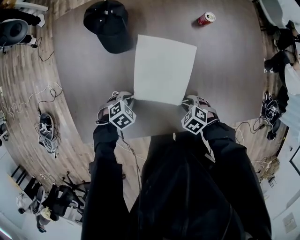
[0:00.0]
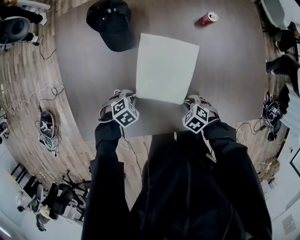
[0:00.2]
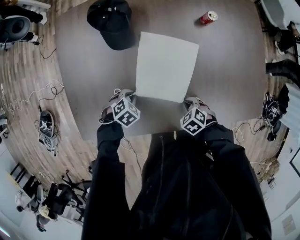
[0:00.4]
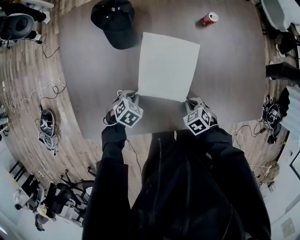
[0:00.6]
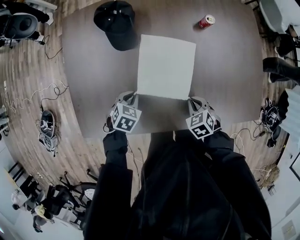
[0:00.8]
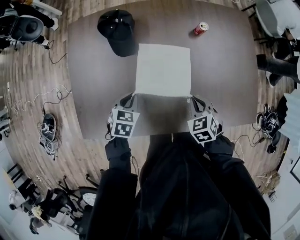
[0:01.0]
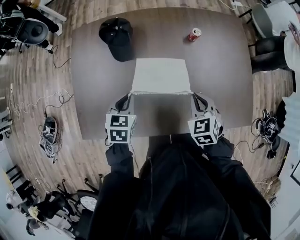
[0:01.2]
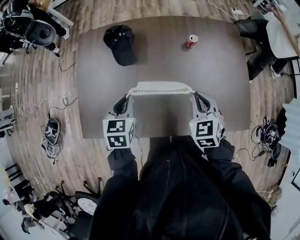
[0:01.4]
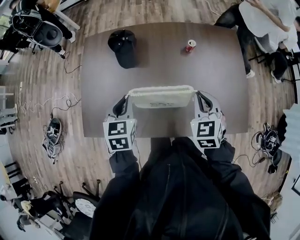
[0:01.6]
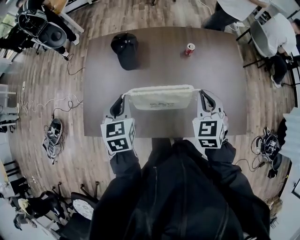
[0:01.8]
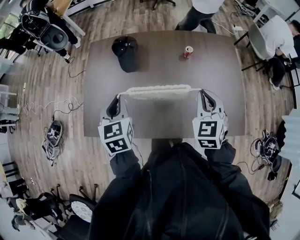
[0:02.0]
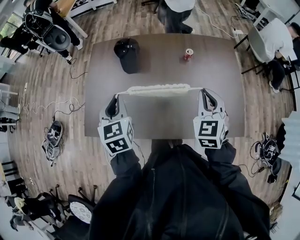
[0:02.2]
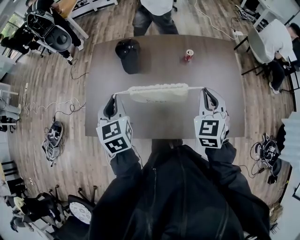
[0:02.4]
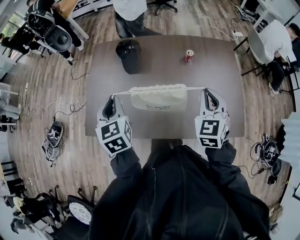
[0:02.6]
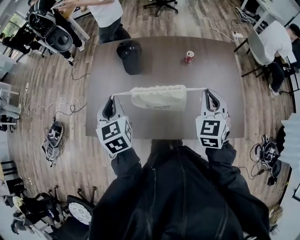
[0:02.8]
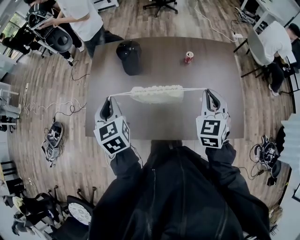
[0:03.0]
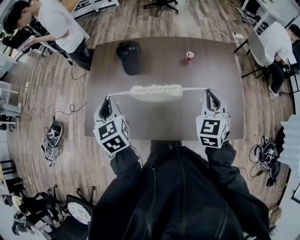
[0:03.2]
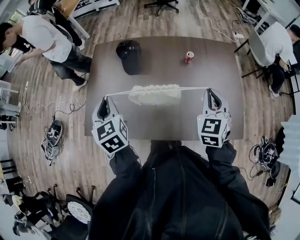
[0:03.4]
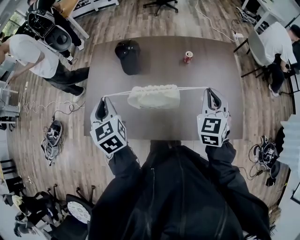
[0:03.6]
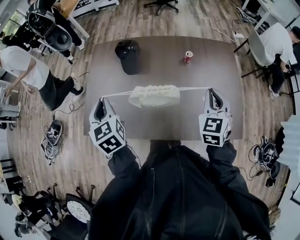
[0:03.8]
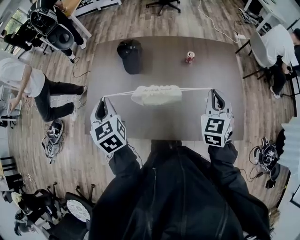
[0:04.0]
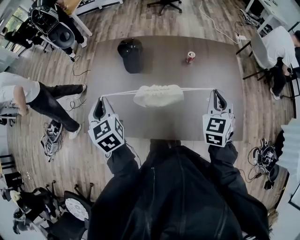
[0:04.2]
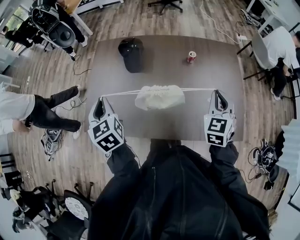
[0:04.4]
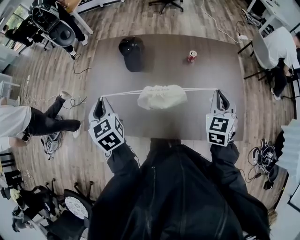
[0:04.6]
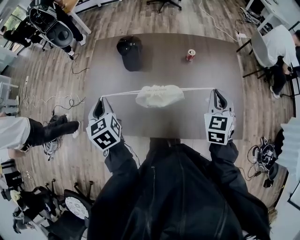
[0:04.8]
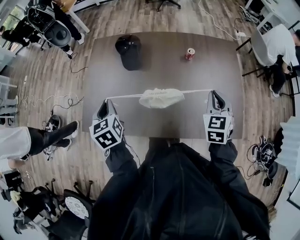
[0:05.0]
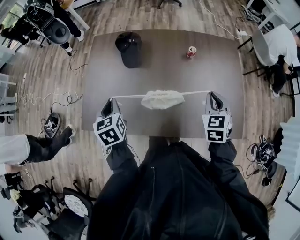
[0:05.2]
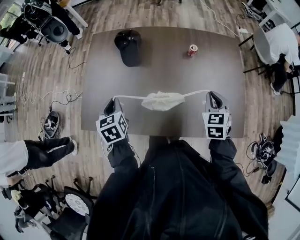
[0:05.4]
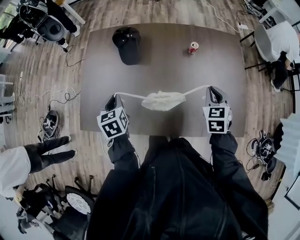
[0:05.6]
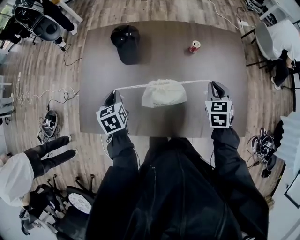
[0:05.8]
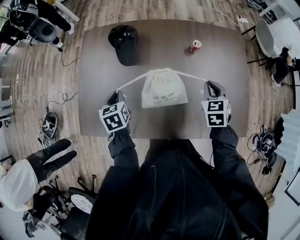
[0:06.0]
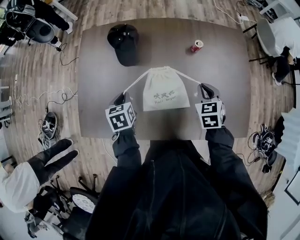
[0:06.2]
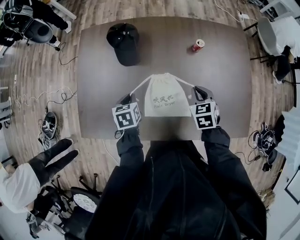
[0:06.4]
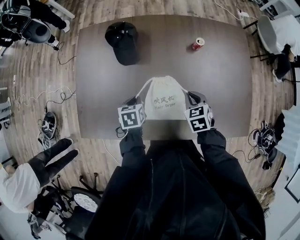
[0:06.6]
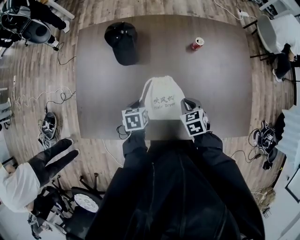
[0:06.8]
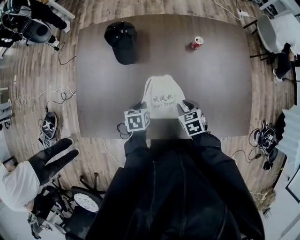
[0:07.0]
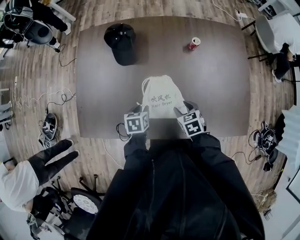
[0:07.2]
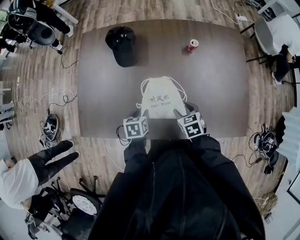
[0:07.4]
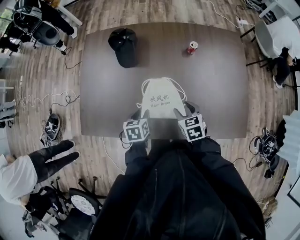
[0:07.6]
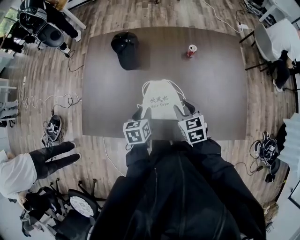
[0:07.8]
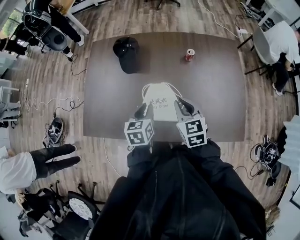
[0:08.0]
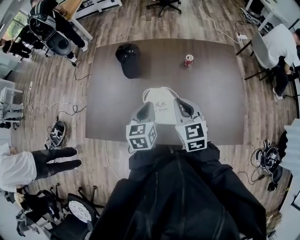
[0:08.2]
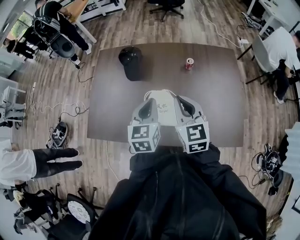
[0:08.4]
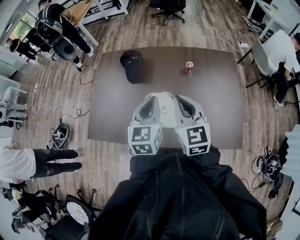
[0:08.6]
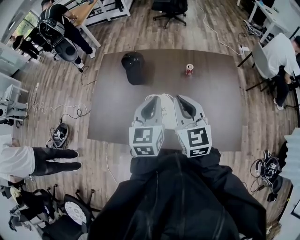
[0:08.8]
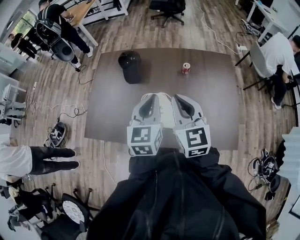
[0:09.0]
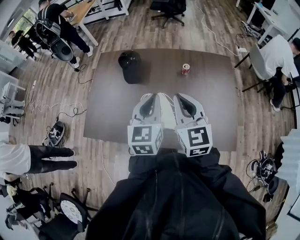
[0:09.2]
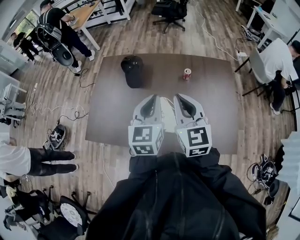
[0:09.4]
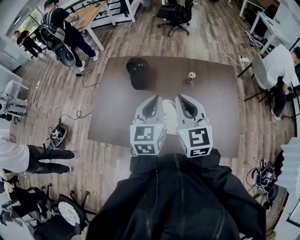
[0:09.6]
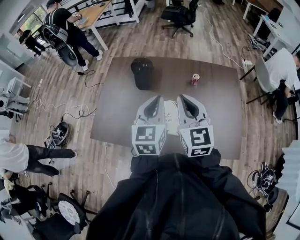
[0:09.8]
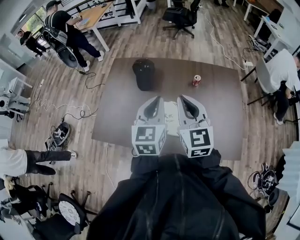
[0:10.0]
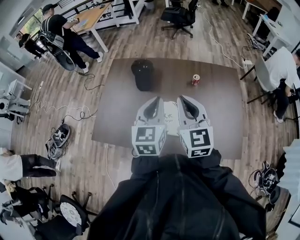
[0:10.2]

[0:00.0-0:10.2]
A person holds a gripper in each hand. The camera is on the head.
0.0 to 1.4 s: The grippers both shift upward by about 30 cm. The right gripper tips its fingers upward by approximately 40 degrees, and closes its fingers. Meanwhile the left gripper tilts its fingers some 30 degrees upward.
1.4 to 3.0 s: The right gripper shifts about 10 cm upward; the left gripper moves upward, backward and to the left, roughly 15 cm, and swivels about 30 degrees.
3.0 to 4.4 s: The right gripper moves roughly 5 cm.
4.4 to 5.8 s: The two grippers go approximately 15 cm downward and forward. The left gripper changes its angle by roughly 20 degrees.
5.8 to 7.2 s: The left gripper goes about 20 cm downward and to the right, changes its angle by about 30 degrees, and opens its fingers, while the right gripper moves downward, to the left and backward, roughly 20 cm, turns by about 30 degrees, and opens its fingers.
7.2 to 8.8 s: The two grippers go approximately 35 cm upward. The left gripper points its fingers approximately 50 degrees further upward, and closes its fingers, while the right gripper angles its fingers upward, by some 50 degrees, and closes up.
8.8 to 10.2 s: The left gripper ends up approximately 5 cm from where it was; the right gripper shifts by about 5 cm.

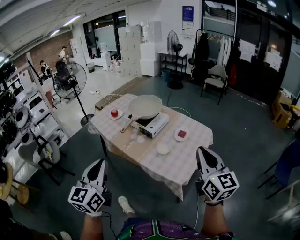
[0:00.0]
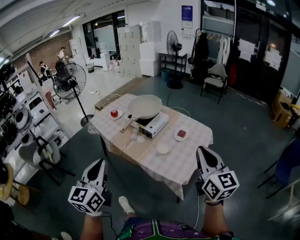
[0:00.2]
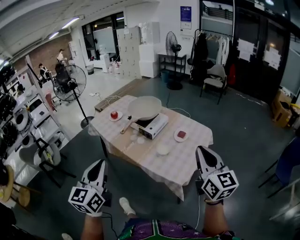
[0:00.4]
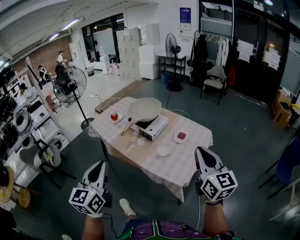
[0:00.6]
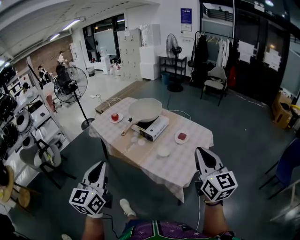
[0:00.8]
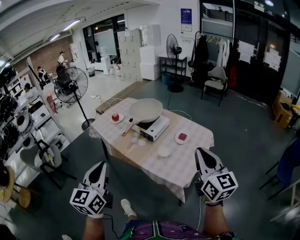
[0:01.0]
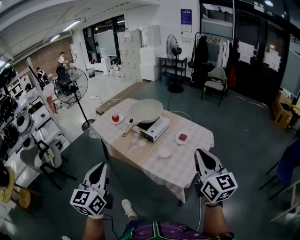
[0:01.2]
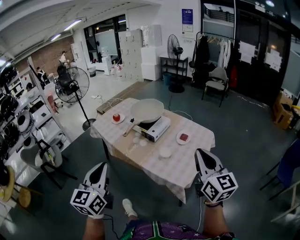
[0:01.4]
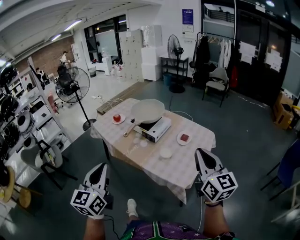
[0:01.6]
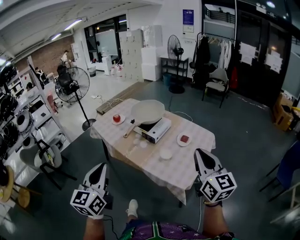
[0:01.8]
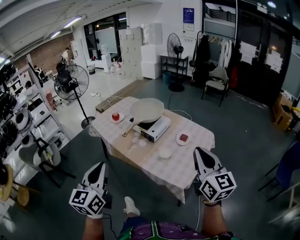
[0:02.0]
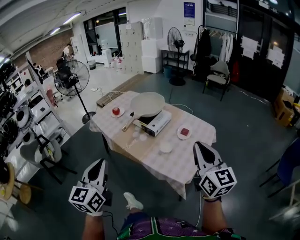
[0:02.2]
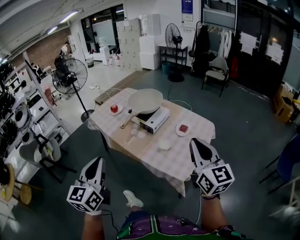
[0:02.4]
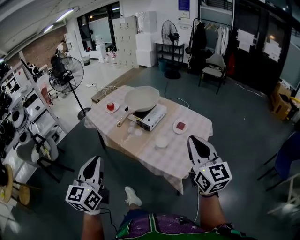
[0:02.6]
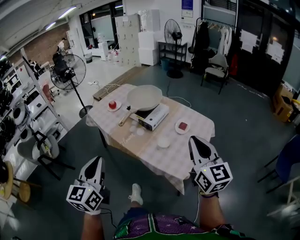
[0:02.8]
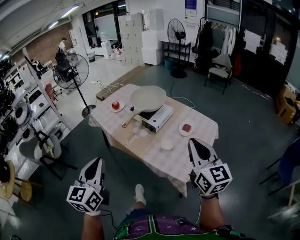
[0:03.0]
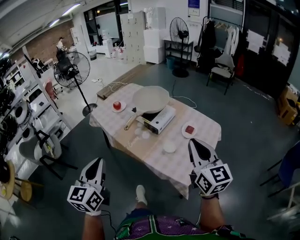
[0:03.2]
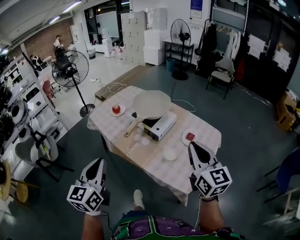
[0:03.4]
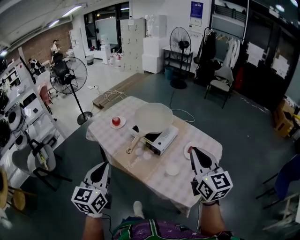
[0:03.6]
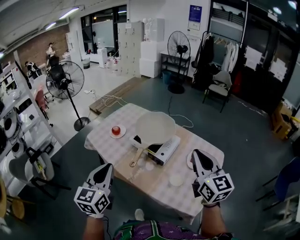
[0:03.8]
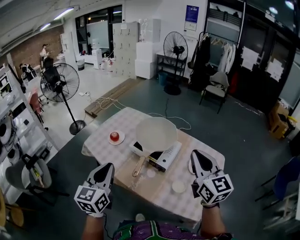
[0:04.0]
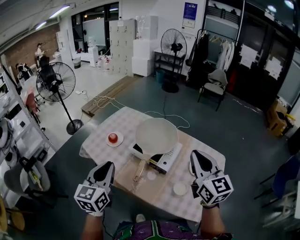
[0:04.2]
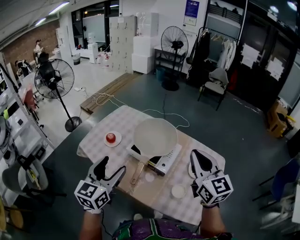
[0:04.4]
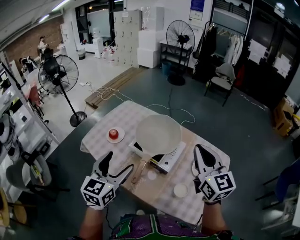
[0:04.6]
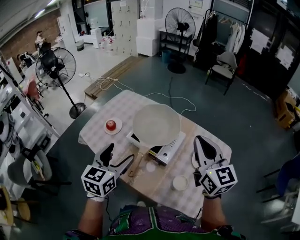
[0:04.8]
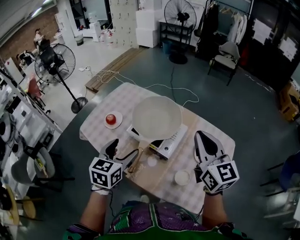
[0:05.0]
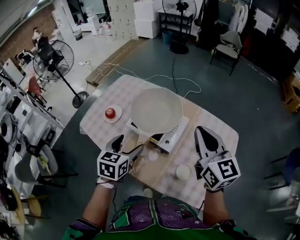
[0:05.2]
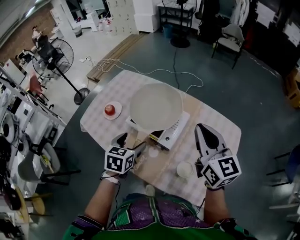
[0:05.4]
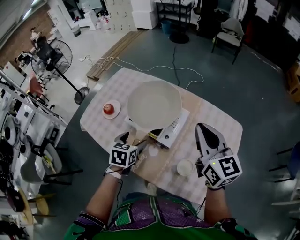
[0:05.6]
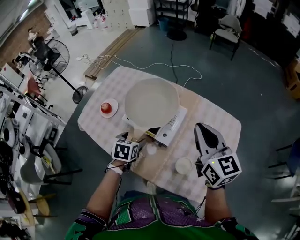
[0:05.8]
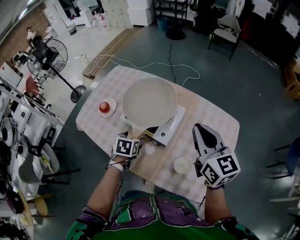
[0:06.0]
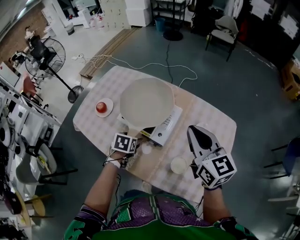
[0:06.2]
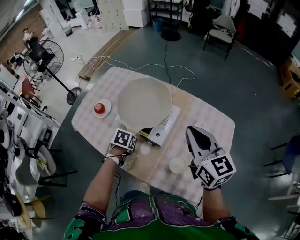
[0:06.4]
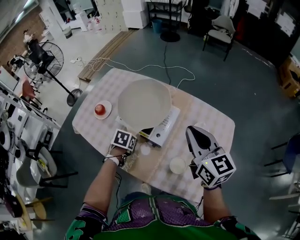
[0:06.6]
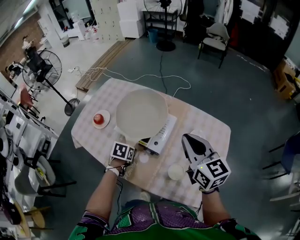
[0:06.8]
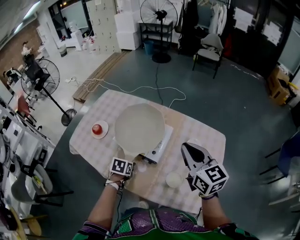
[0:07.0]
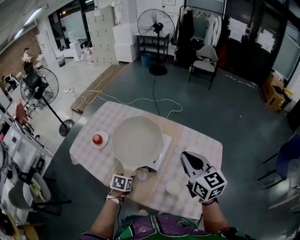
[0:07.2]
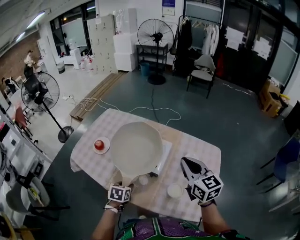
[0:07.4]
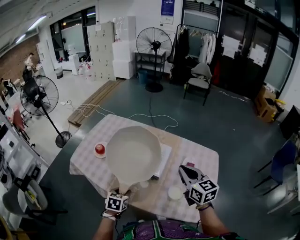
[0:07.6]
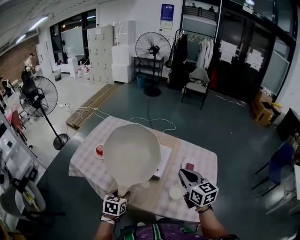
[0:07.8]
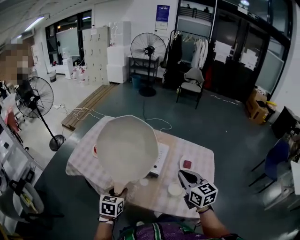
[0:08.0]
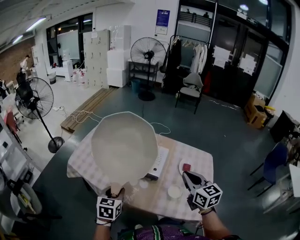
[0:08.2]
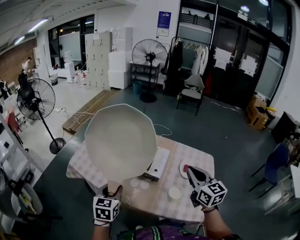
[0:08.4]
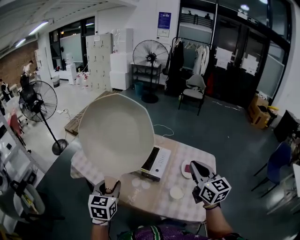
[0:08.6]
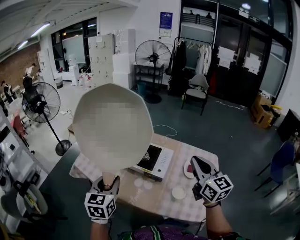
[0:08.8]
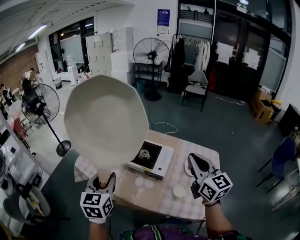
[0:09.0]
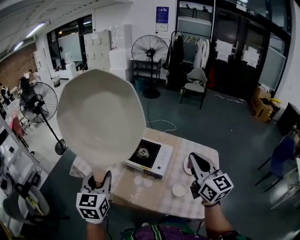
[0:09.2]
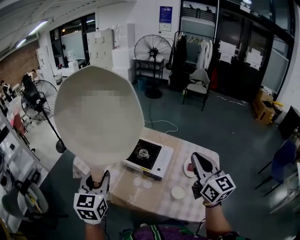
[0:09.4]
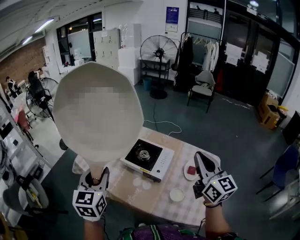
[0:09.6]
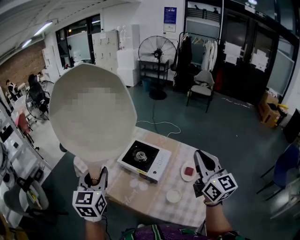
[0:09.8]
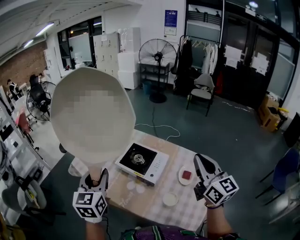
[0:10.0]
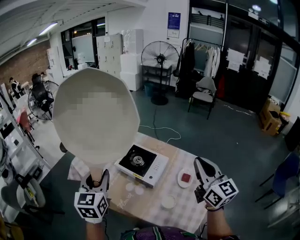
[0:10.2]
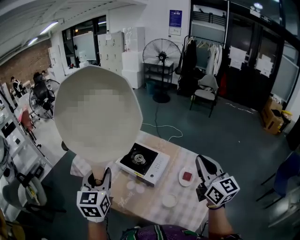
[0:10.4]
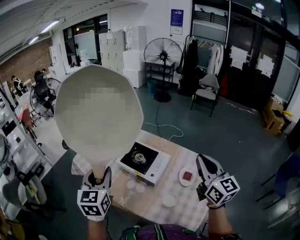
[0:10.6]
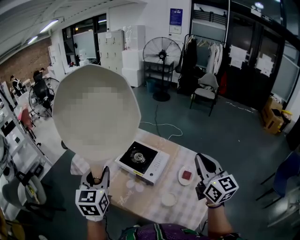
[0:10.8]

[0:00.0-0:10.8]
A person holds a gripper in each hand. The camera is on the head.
0.0 to 1.6 s: There are only small adjustments of the grippers.
1.6 to 3.0 s: The right gripper is displaced forward by some 5 cm.
3.0 to 4.6 s: Both grippers travel together forward, roughly 40 cm. The left gripper swivels about 20 degrees, and opens up.
4.6 to 6.2 s: The left gripper heads downward and forward, covering roughly 30 cm, and points its fingers roughly 50 degrees further downward; the right gripper is displaced downward, to the right and forward by approximately 15 cm.
6.2 to 7.8 s: The left gripper heads backward, covering some 20 cm, swivels some 20 degrees, and closes up. Meanwhile the right gripper heads backward and to the left, covering some 15 cm.
7.8 to 9.2 s: The right gripper goes some 10 cm upward; the left gripper goes approximately 25 cm upward, and rotates roughly 30 degrees.
9.2 to 10.8 s: Both grippers move to the right, approximately 10 cm.

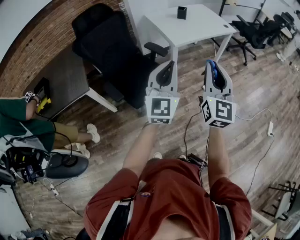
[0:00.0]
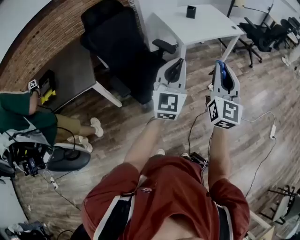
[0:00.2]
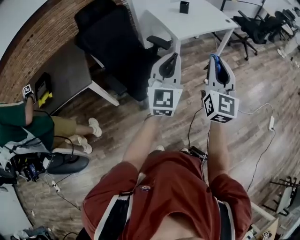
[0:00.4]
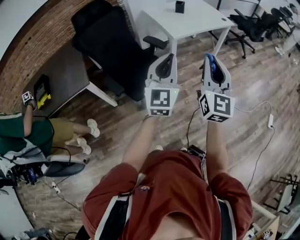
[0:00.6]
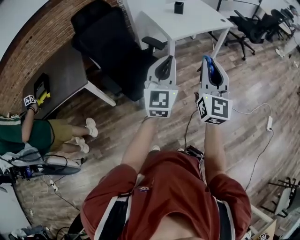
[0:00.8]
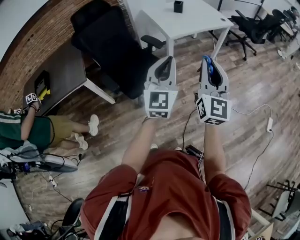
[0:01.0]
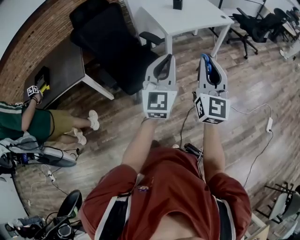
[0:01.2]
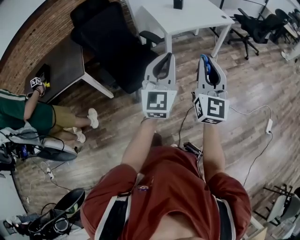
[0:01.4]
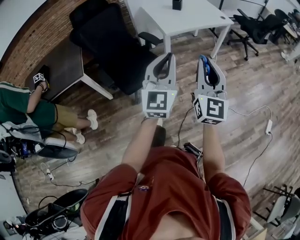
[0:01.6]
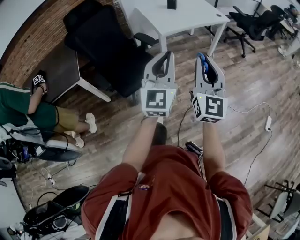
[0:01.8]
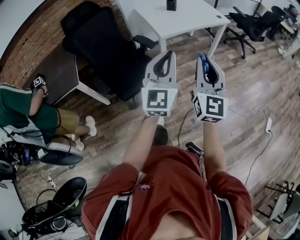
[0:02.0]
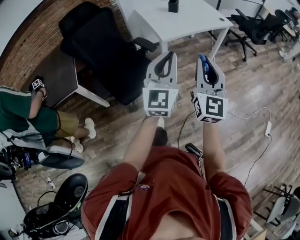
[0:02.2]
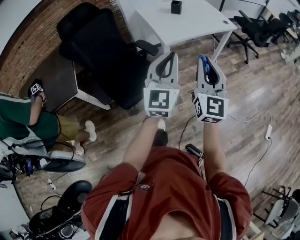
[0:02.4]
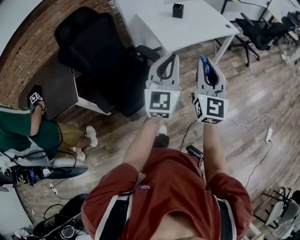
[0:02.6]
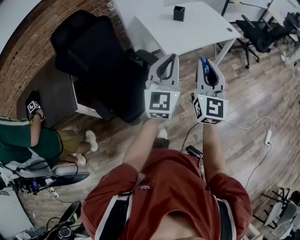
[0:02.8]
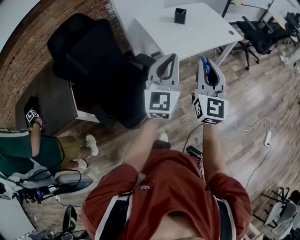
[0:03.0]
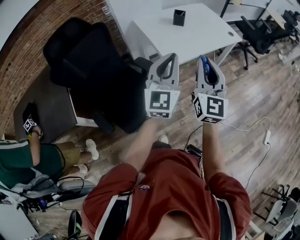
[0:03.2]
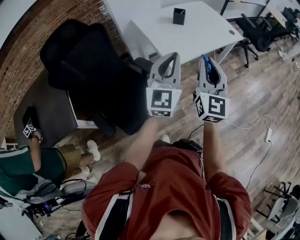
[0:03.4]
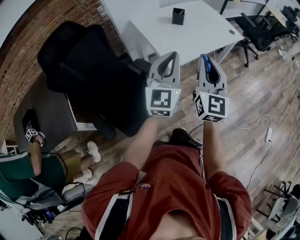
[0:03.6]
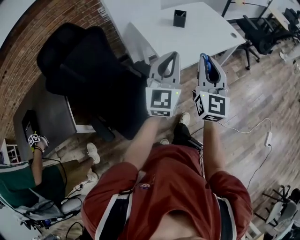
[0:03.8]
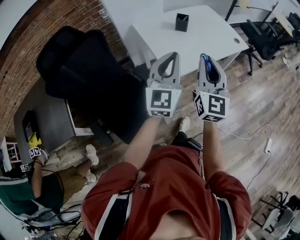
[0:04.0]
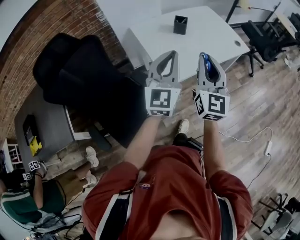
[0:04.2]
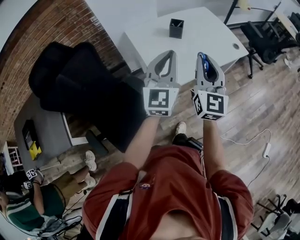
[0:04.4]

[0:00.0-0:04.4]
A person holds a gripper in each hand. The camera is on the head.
0.0 to 1.4 s: Both grippers travel together to the right, some 10 cm.
1.4 to 3.0 s: The two grippers go approximately 30 cm forward.
3.0 to 4.4 s: The two grippers go about 25 cm forward.
